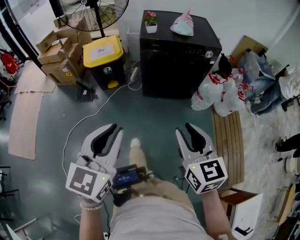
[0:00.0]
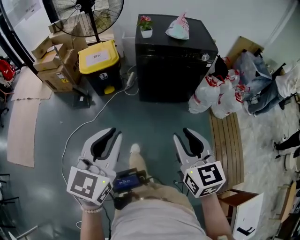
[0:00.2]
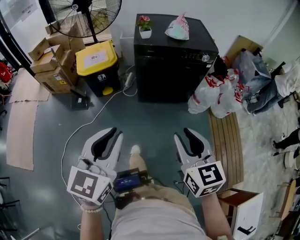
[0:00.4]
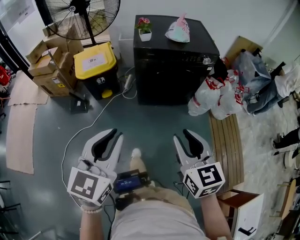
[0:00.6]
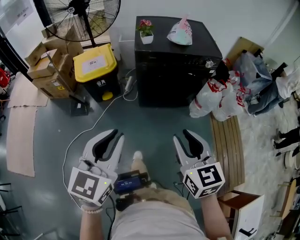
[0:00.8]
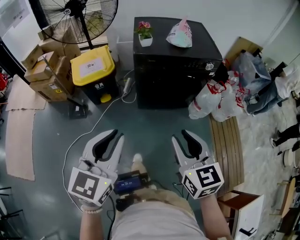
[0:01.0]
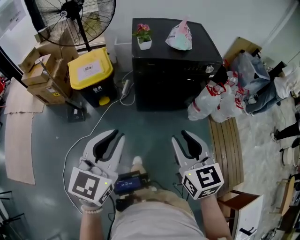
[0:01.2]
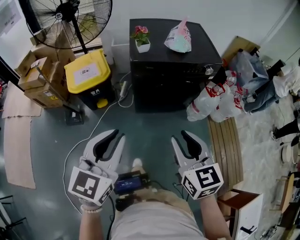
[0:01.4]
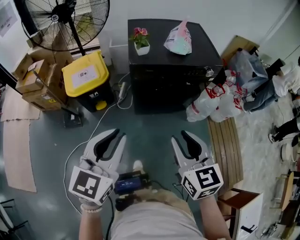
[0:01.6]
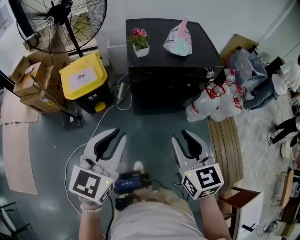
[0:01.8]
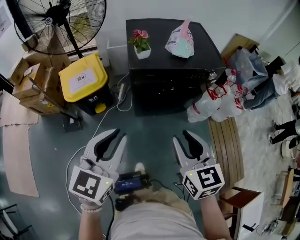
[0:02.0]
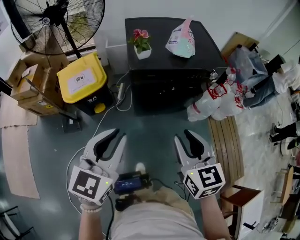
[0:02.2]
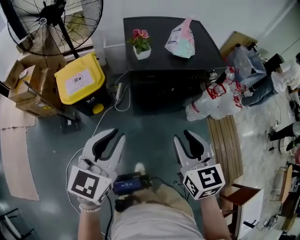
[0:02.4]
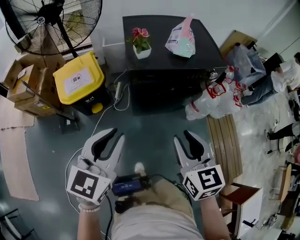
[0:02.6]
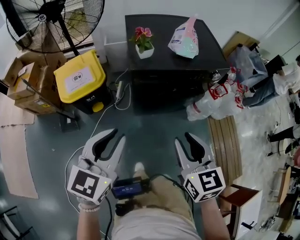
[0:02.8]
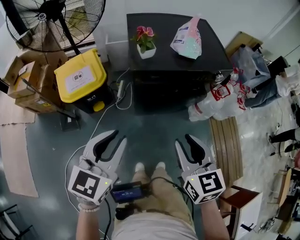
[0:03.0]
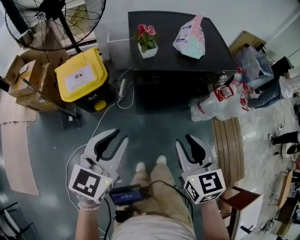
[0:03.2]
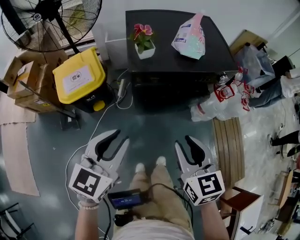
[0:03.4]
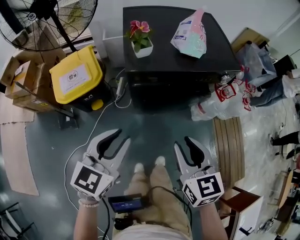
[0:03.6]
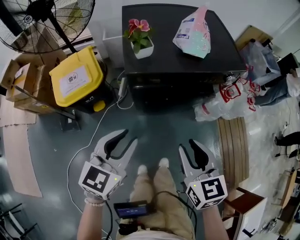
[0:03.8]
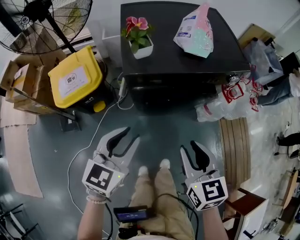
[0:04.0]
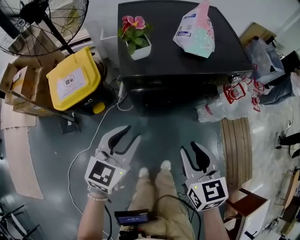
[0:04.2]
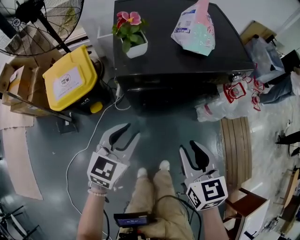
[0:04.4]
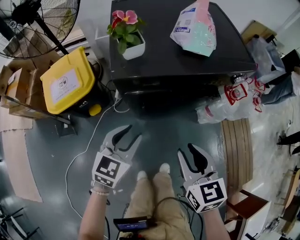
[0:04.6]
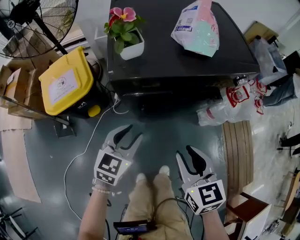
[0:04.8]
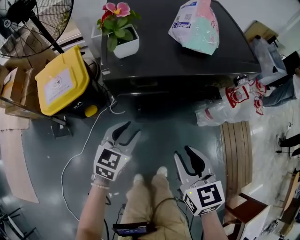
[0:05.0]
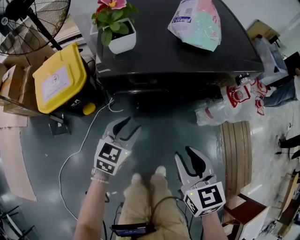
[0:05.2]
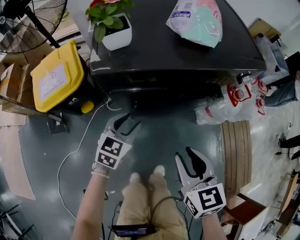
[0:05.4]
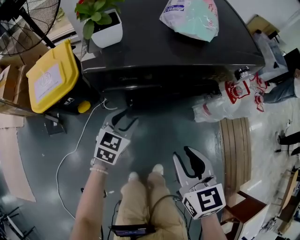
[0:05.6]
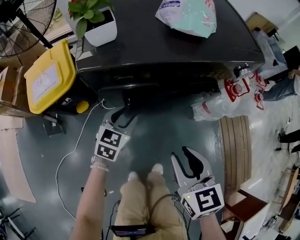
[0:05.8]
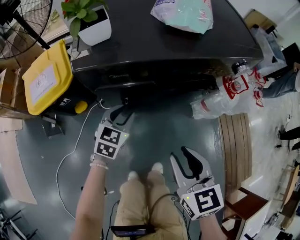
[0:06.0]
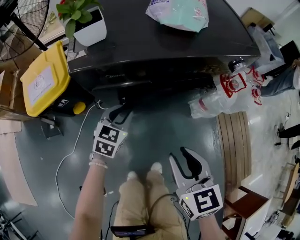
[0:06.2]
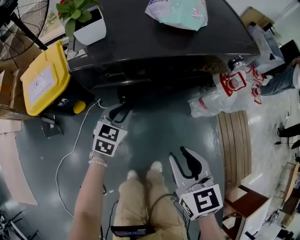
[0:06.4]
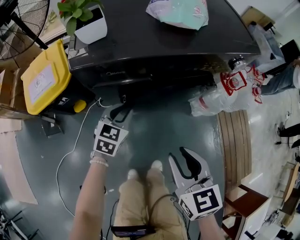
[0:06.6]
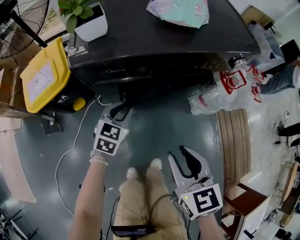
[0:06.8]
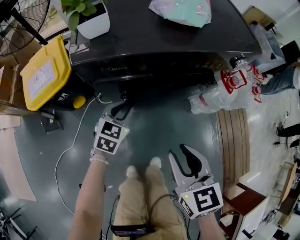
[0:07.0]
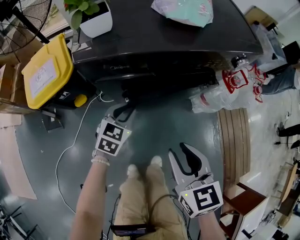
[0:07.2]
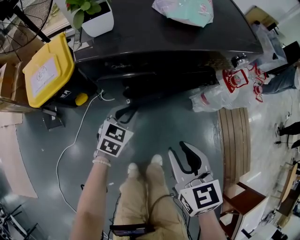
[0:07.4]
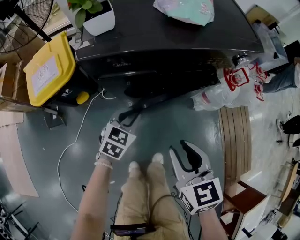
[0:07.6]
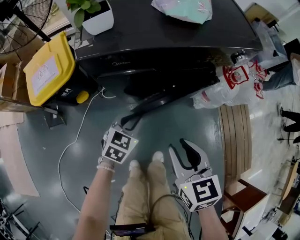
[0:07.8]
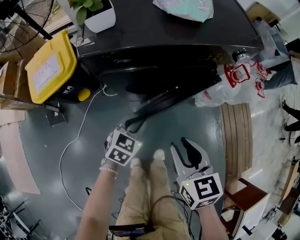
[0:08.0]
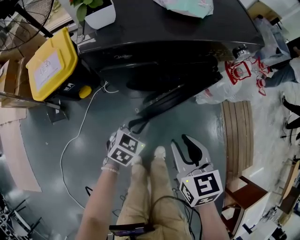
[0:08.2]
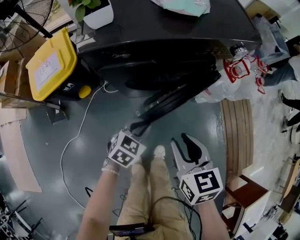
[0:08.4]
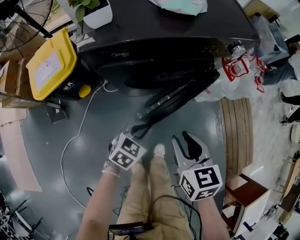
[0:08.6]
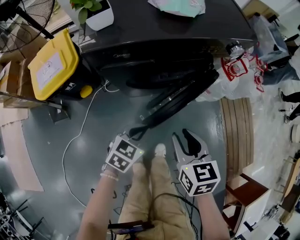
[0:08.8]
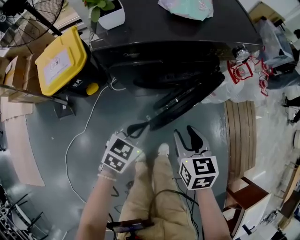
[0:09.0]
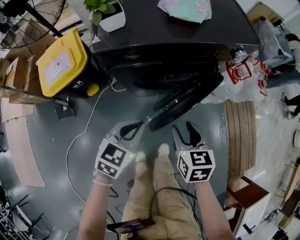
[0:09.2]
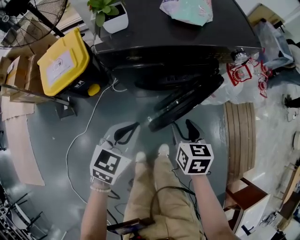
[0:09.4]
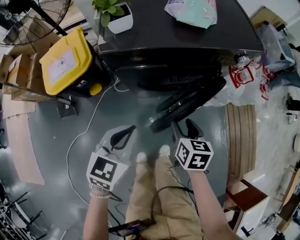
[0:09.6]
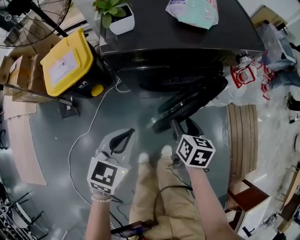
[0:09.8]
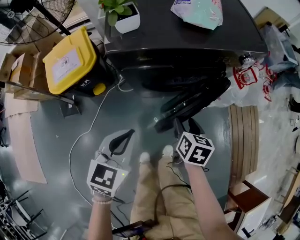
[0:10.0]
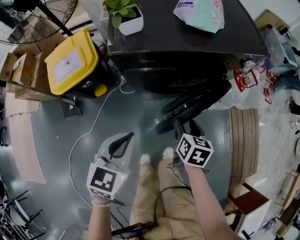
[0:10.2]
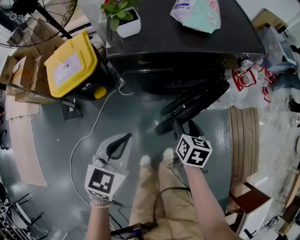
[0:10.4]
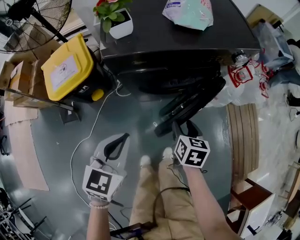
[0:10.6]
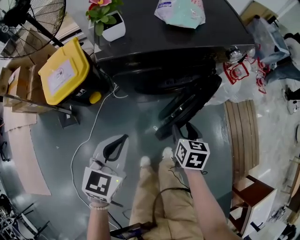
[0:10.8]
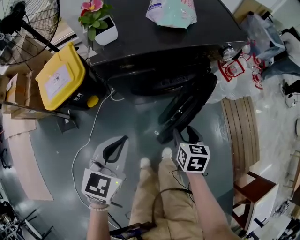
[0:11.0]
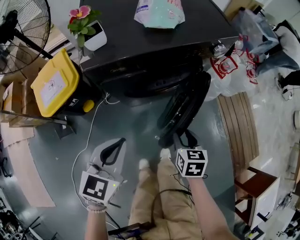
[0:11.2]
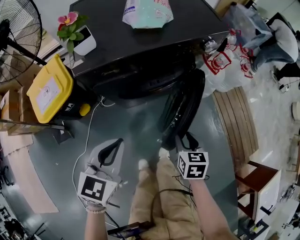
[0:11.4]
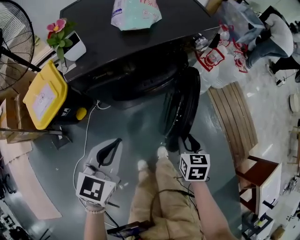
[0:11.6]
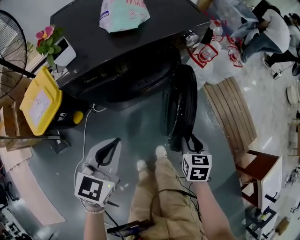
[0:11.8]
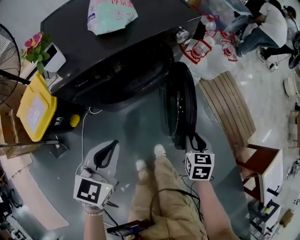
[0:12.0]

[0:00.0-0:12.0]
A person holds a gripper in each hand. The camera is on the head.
0:00.0 to 0:01.6: Both grippers move forward, some 25 cm.
0:01.6 to 0:03.0: The left gripper goes approximately 10 cm forward and downward. Meanwhile the right gripper is displaced forward by about 10 cm.
0:03.0 to 0:04.4: The grippers both shift downward and forward by about 20 cm.
0:04.4 to 0:06.0: The right gripper travels downward by about 10 cm. The left gripper shifts about 20 cm downward and forward.
0:06.0 to 0:07.6: The left gripper travels backward by approximately 5 cm.
0:07.6 to 0:09.0: The left gripper moves backward and upward, about 10 cm.
0:09.0 to 0:10.4: The right gripper travels downward by roughly 5 cm. Meanwhile the left gripper heads upward and to the left, covering approximately 15 cm.
0:10.4 to 0:12.0: The left gripper travels to the right by roughly 10 cm. The right gripper shifts about 20 cm to the right, turns by about 20 degrees, and closes its fingers.

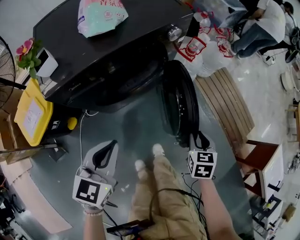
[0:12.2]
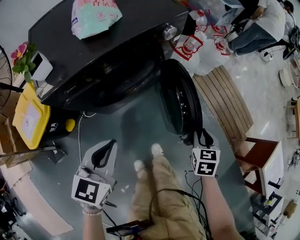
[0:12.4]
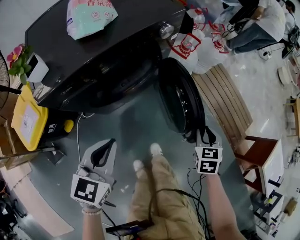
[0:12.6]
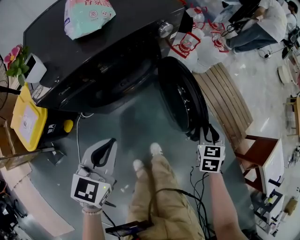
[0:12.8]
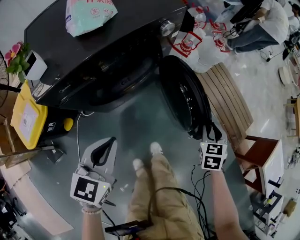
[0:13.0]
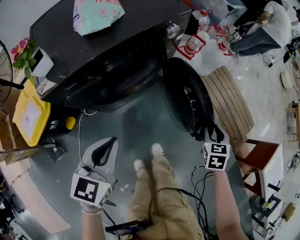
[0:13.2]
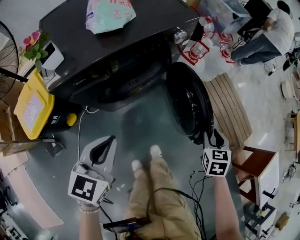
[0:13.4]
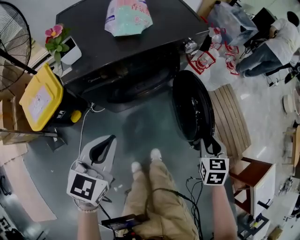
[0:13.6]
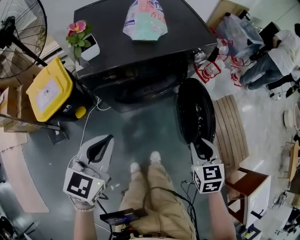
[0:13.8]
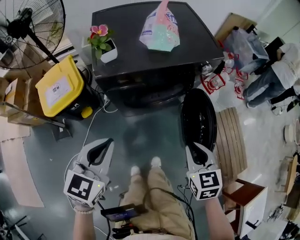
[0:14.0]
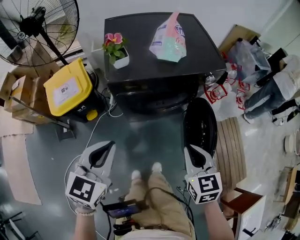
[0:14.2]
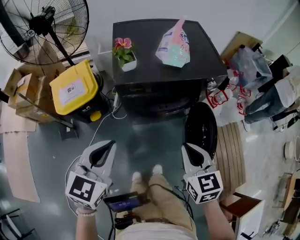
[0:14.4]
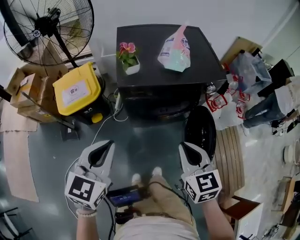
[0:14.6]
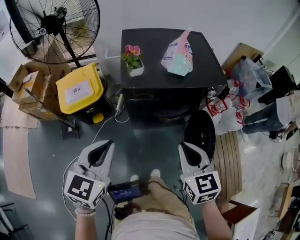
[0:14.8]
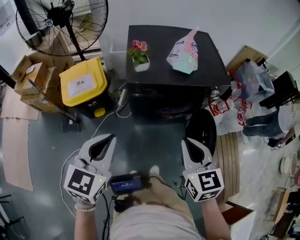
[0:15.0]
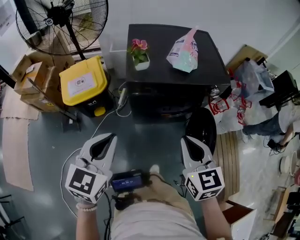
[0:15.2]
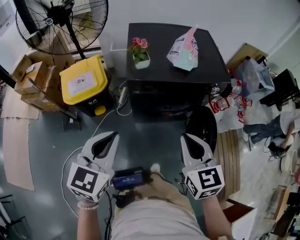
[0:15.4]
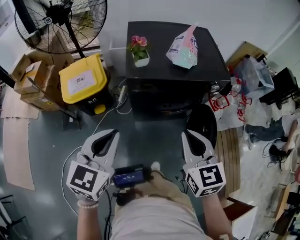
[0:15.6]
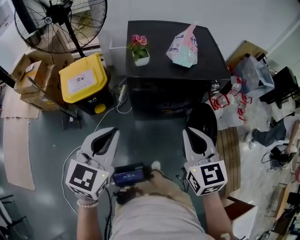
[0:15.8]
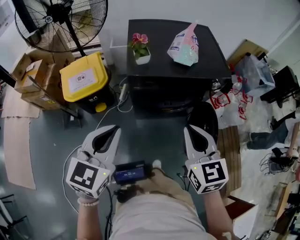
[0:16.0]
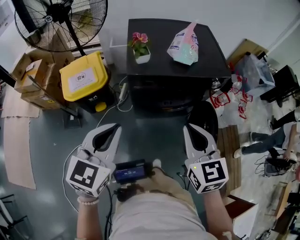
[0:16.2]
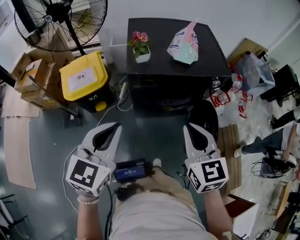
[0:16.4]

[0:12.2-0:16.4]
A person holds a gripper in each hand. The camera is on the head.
0:12.2 to 0:13.6: The right gripper is displaced upward by some 5 cm. Meanwhile the left gripper moves approximately 5 cm.
0:13.6 to 0:15.0: The left gripper travels upward by about 15 cm, and rotates about 20 degrees; the right gripper moves upward, some 25 cm, swivels about 40 degrees, and closes its fingers.
0:15.0 to 0:16.4: The grippers stay close to where they were, moving slightly.

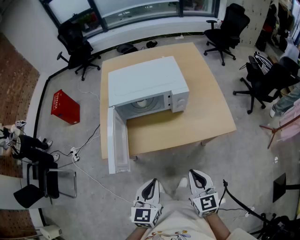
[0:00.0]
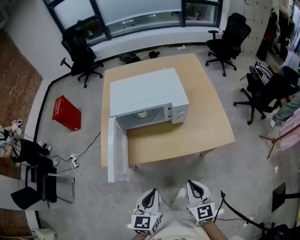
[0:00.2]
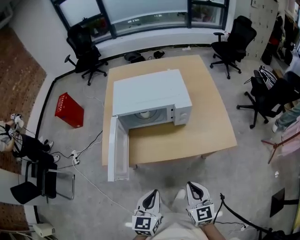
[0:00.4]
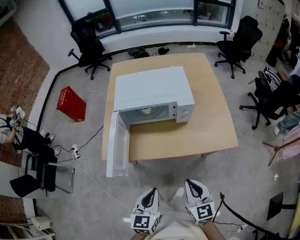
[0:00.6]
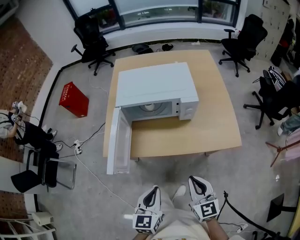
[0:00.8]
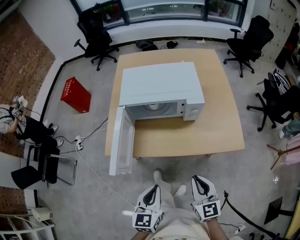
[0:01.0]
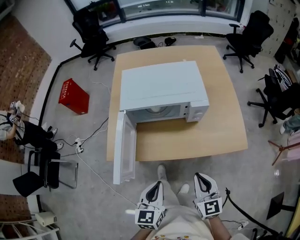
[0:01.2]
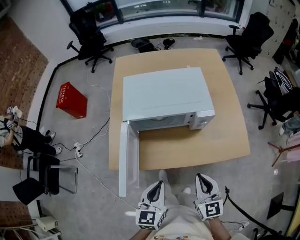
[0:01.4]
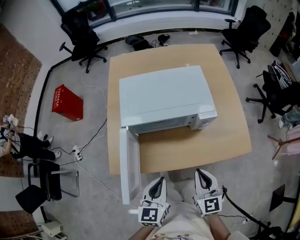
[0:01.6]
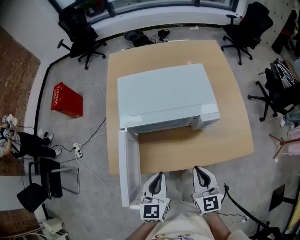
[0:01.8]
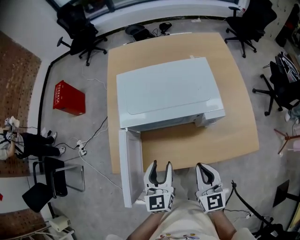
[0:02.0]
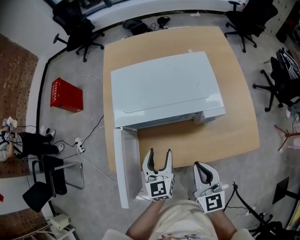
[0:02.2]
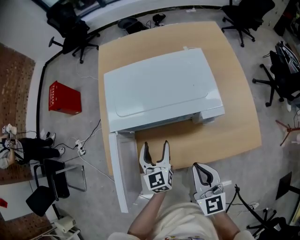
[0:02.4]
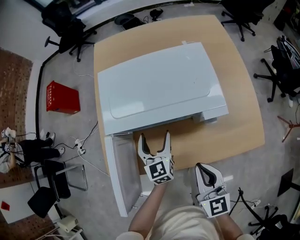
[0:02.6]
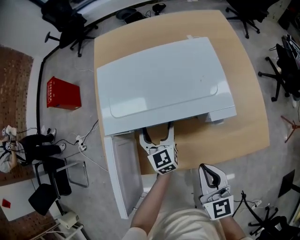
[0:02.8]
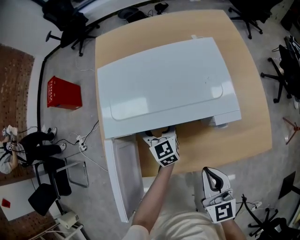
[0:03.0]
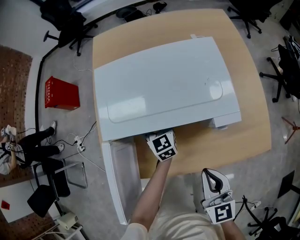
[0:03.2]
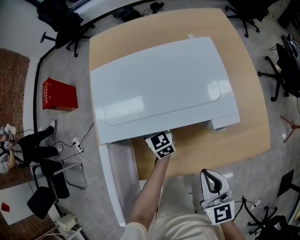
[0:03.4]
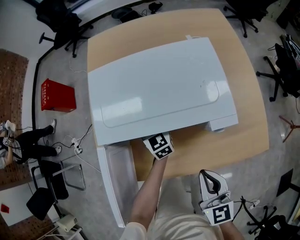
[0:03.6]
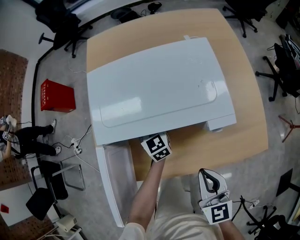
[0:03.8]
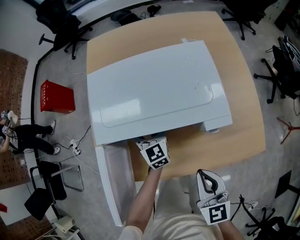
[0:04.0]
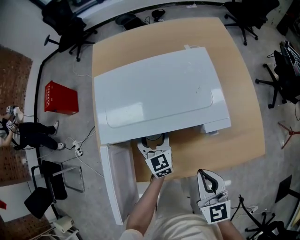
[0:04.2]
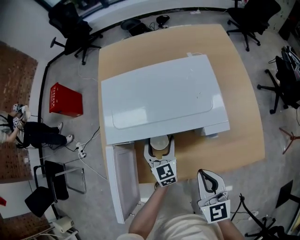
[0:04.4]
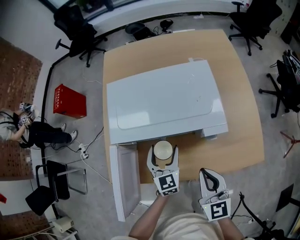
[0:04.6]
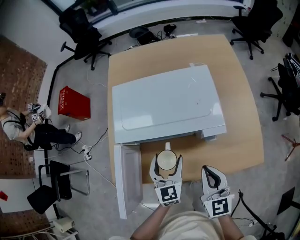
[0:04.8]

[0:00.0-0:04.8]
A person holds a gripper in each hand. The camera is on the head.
0:00.0 to 0:01.6: Both grippers travel together forward, roughly 15 cm.
0:01.6 to 0:03.2: The right gripper moves forward and downward, approximately 10 cm, while the left gripper is displaced forward and downward by approximately 35 cm, rotates roughly 20 degrees, and opens.
0:03.2 to 0:04.8: The right gripper ends up about 5 cm from where it was. Meanwhile the left gripper shifts roughly 20 cm backward and upward.

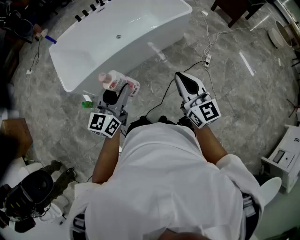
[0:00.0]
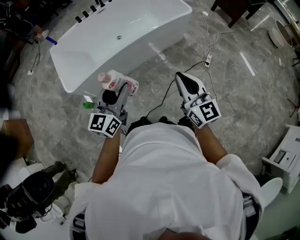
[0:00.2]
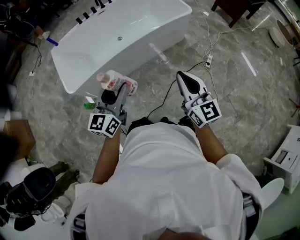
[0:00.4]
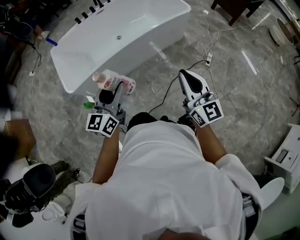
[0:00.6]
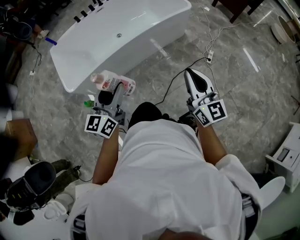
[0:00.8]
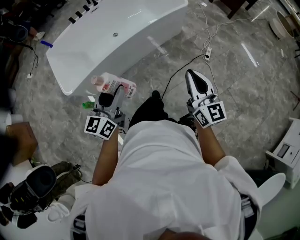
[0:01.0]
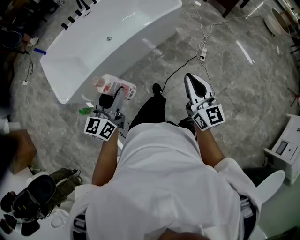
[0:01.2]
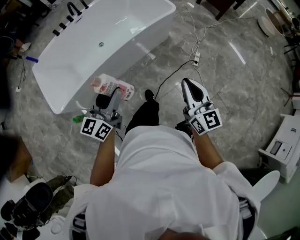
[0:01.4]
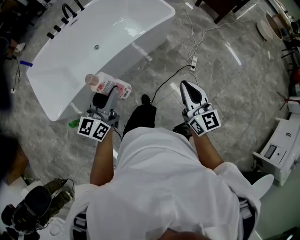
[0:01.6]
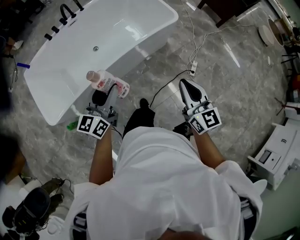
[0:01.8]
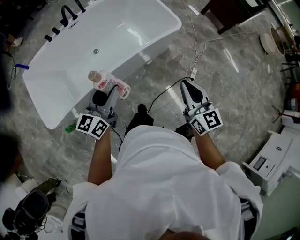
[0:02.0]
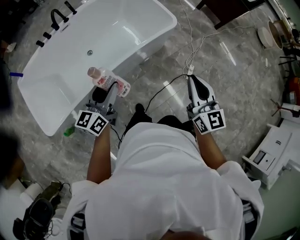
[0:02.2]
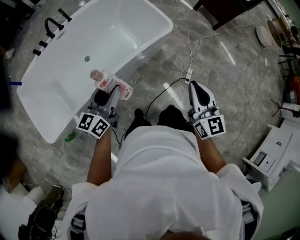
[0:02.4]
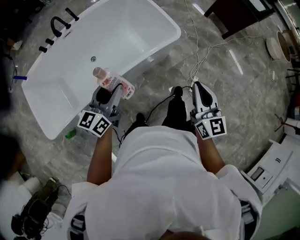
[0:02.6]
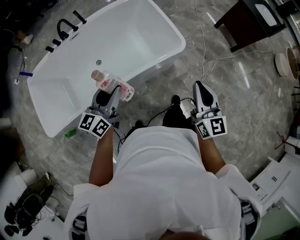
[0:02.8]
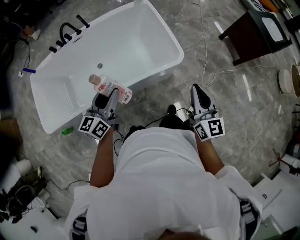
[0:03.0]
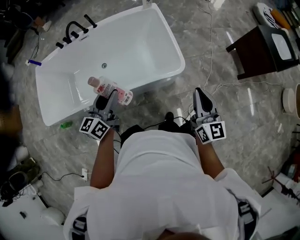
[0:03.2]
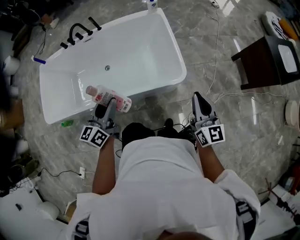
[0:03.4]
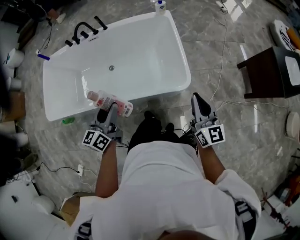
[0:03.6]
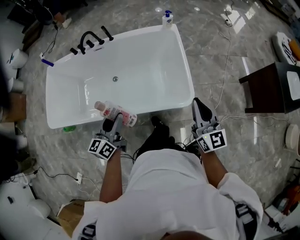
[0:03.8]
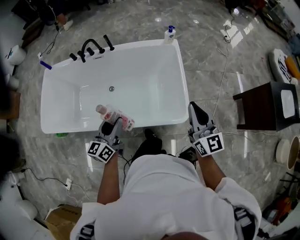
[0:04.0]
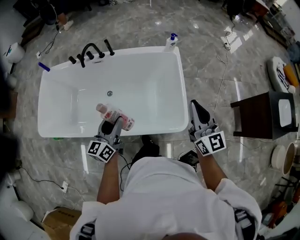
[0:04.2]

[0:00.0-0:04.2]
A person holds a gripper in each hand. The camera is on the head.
0:00.0 to 0:01.4: The left gripper shifts some 15 cm forward and to the right. Meanwhile the right gripper travels to the right and forward by about 15 cm.
0:01.4 to 0:02.8: Both grippers are carried forward, roughly 40 cm.
0:02.8 to 0:04.2: The left gripper moves some 20 cm, and changes its angle by some 30 degrees; the right gripper moves approximately 40 cm, and changes its angle by some 30 degrees.
